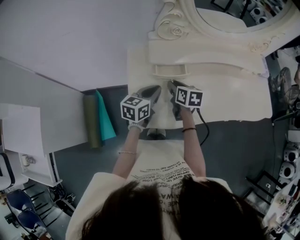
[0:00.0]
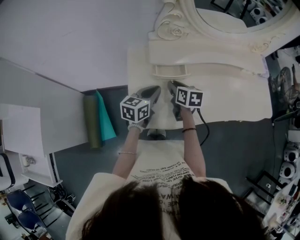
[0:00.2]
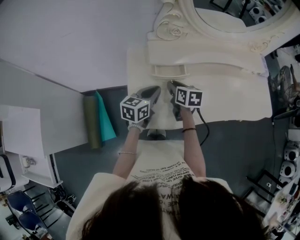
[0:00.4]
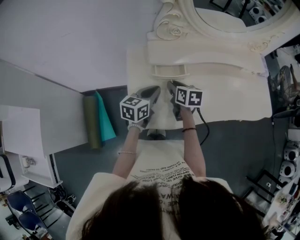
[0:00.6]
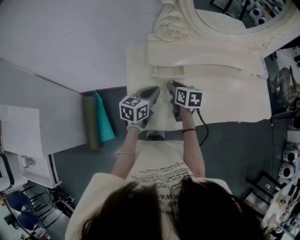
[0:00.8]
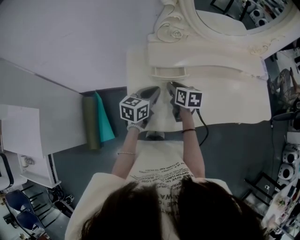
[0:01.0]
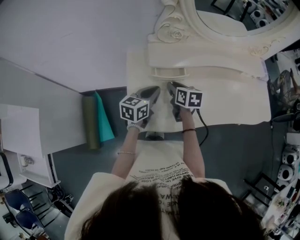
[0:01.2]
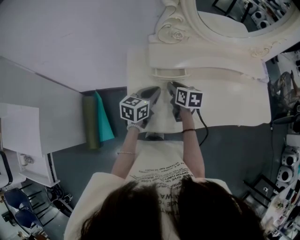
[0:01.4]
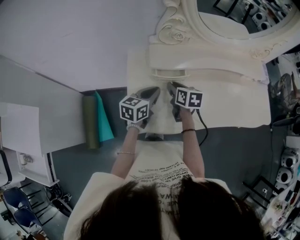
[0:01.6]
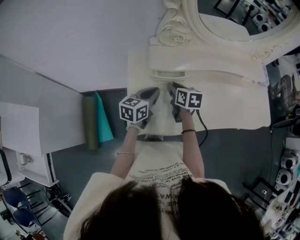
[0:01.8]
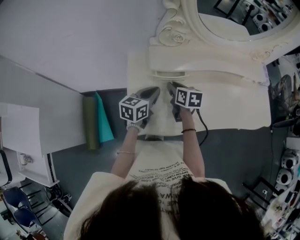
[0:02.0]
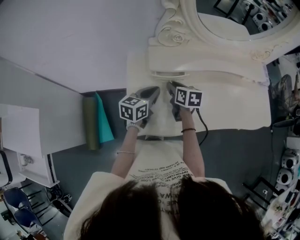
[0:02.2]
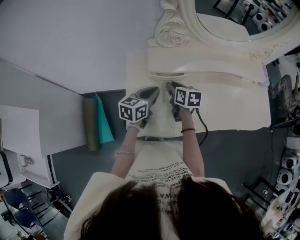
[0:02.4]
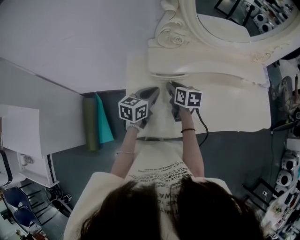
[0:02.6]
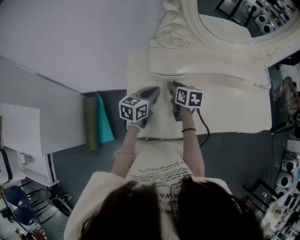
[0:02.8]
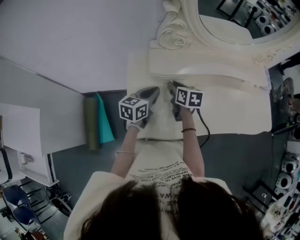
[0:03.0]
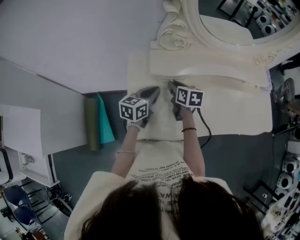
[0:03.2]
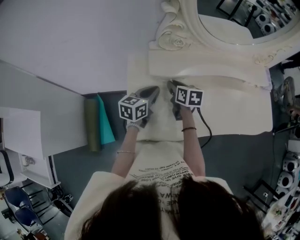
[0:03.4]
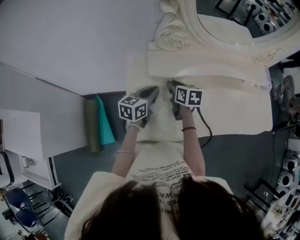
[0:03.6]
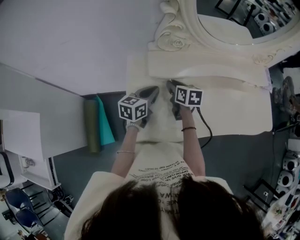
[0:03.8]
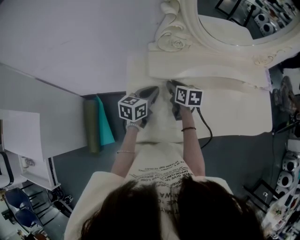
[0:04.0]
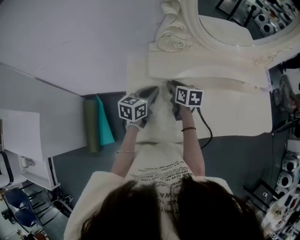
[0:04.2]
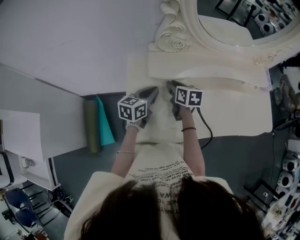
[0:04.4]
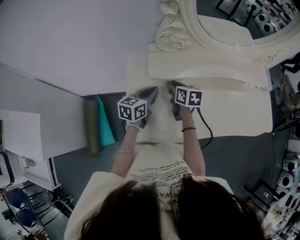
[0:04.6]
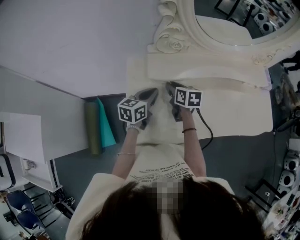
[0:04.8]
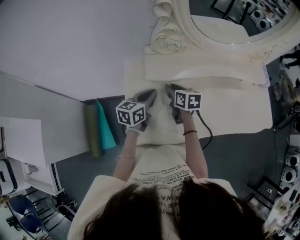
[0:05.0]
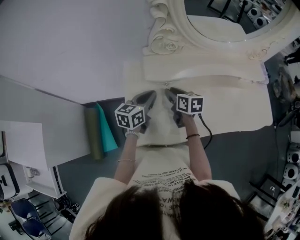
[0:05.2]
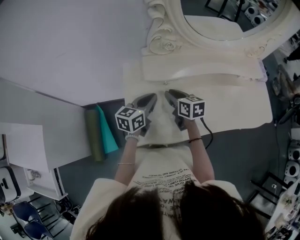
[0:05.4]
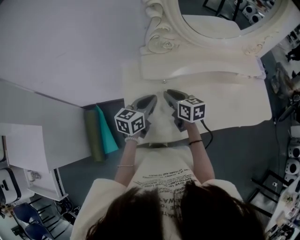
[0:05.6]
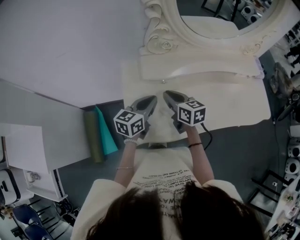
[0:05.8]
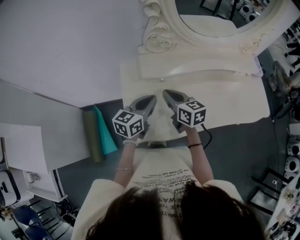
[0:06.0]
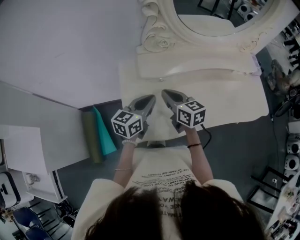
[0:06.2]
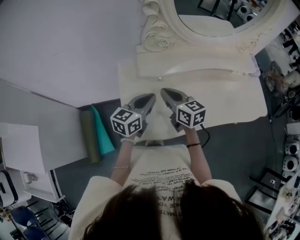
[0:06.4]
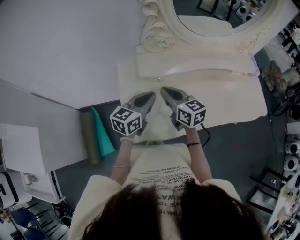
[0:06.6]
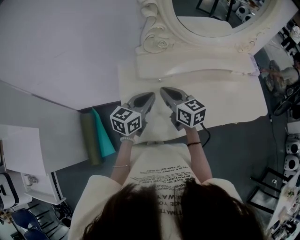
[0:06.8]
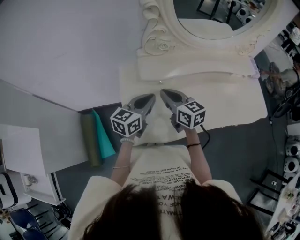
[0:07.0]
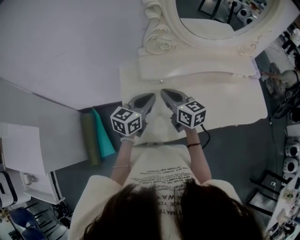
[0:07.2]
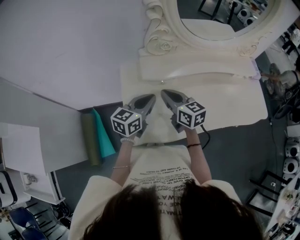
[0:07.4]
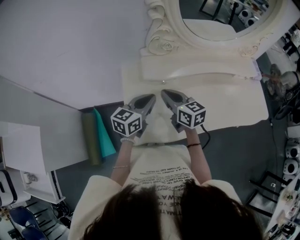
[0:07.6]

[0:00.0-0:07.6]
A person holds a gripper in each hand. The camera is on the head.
0:00.0 to 0:03.0: The grippers move only a little.
0:03.0 to 0:04.6: The grippers make only small movements.
0:04.6 to 0:06.0: Both grippers travel together backward and upward, about 10 cm. The right gripper closes.
0:06.0 to 0:07.6: The grippers move only a little.

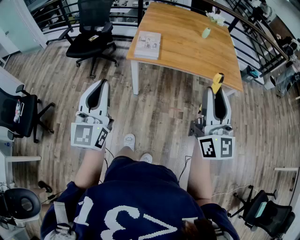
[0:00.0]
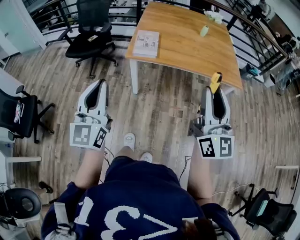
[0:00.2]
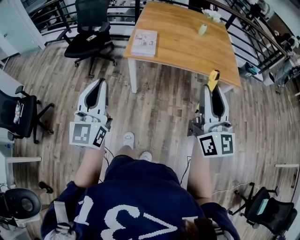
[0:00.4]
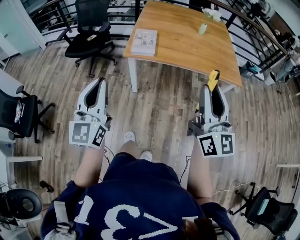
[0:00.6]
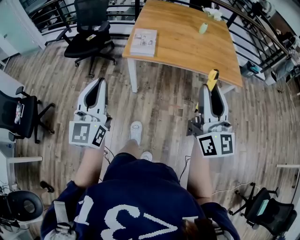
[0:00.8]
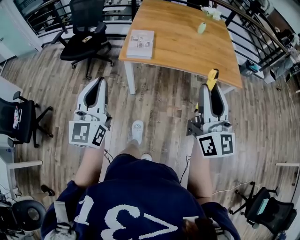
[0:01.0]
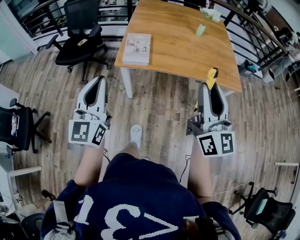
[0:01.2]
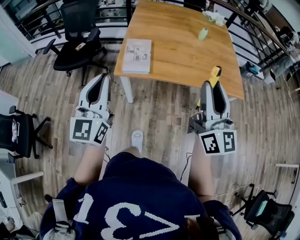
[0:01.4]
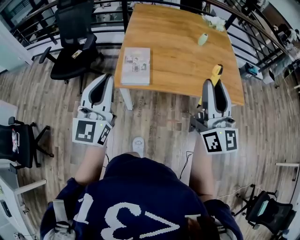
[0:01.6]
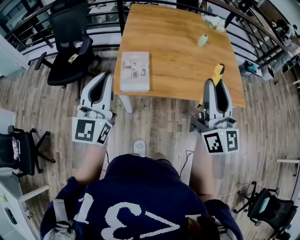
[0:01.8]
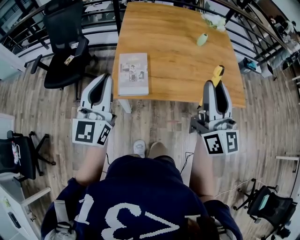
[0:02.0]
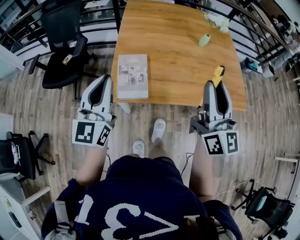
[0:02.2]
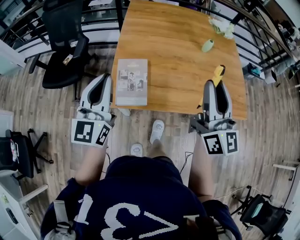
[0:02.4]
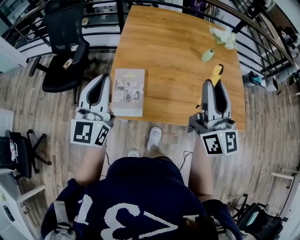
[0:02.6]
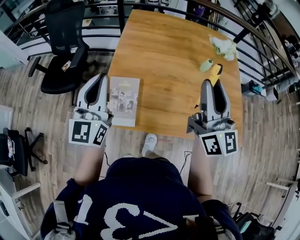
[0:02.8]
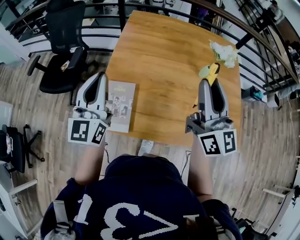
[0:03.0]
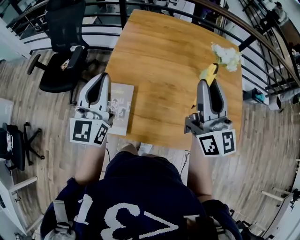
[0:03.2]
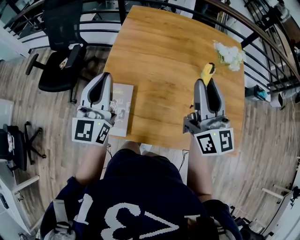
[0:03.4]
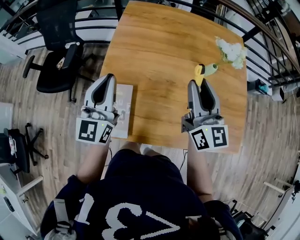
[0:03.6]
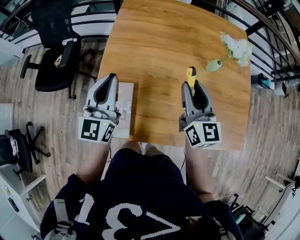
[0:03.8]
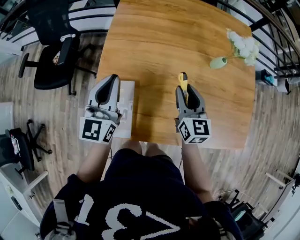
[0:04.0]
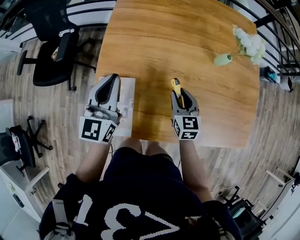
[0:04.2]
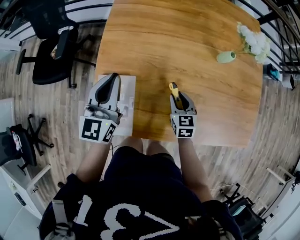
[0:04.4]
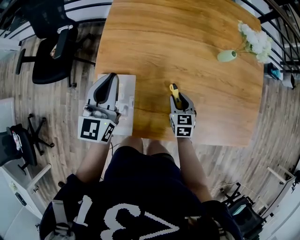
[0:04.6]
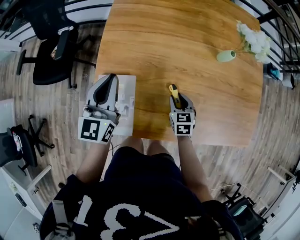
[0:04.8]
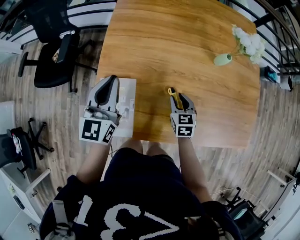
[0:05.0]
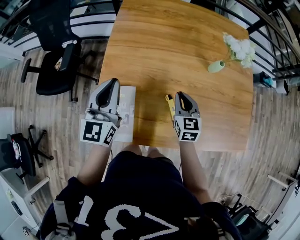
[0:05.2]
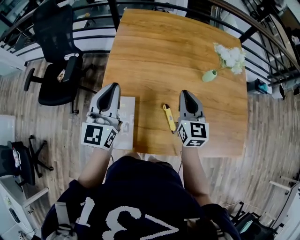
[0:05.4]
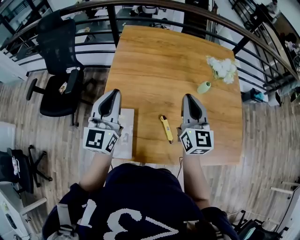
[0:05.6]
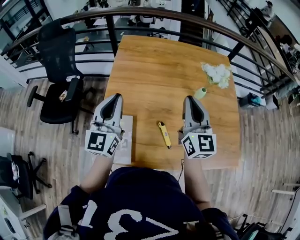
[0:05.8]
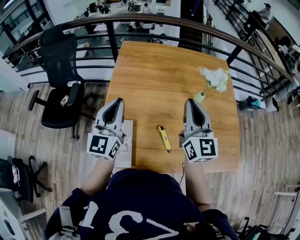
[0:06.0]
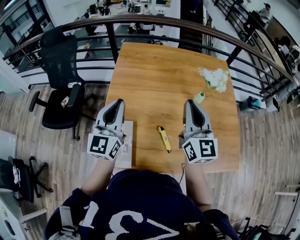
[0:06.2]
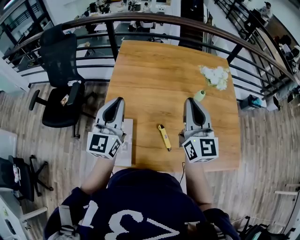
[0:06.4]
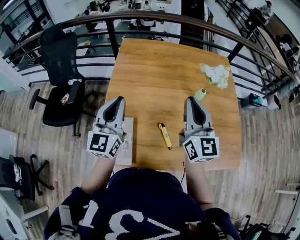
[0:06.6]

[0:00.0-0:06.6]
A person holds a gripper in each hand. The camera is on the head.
0:00.0 to 0:01.6: The grippers both shift forward by roughly 25 cm.
0:01.6 to 0:03.2: The grippers both shift forward by some 30 cm.
0:03.2 to 0:05.0: The left gripper heads downward and forward, covering some 15 cm. Meanwhile the right gripper shifts some 40 cm downward, and tips its fingers downward by approximately 60 degrees.
0:05.0 to 0:06.6: The right gripper goes roughly 35 cm upward, points its fingers approximately 50 degrees further upward, and closes its fingers; the left gripper heads upward, covering some 10 cm.

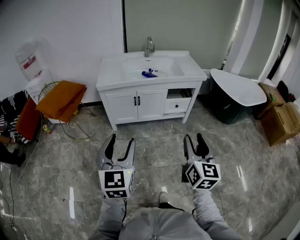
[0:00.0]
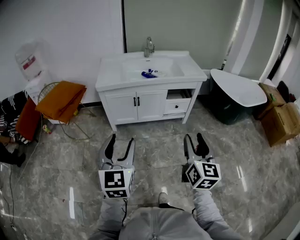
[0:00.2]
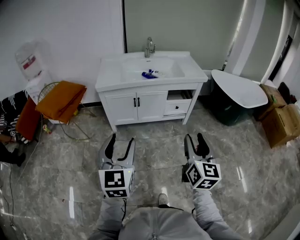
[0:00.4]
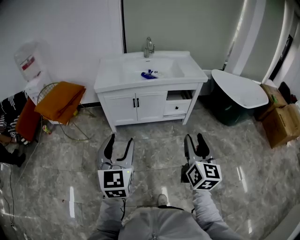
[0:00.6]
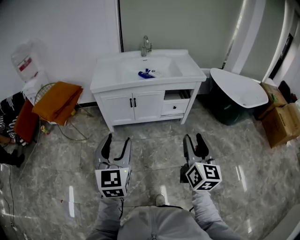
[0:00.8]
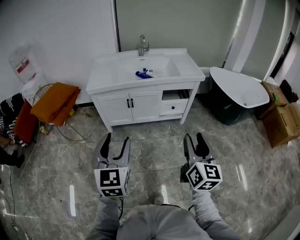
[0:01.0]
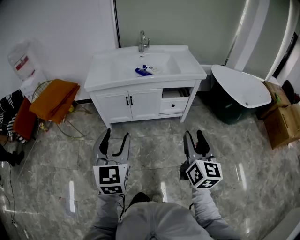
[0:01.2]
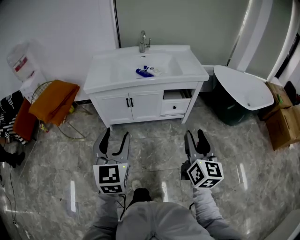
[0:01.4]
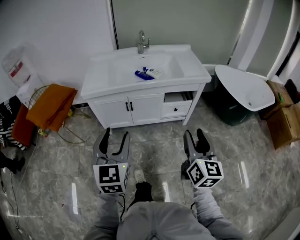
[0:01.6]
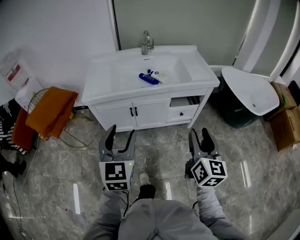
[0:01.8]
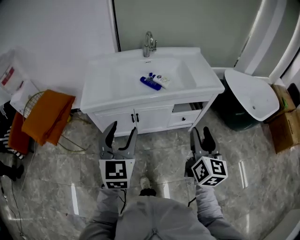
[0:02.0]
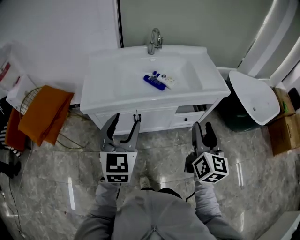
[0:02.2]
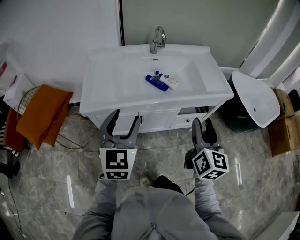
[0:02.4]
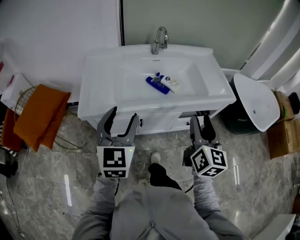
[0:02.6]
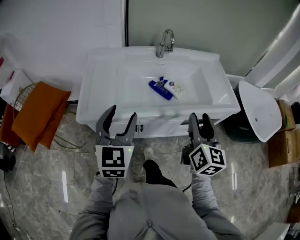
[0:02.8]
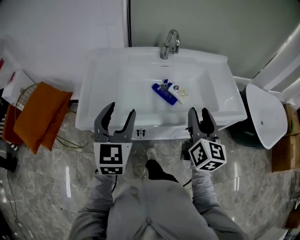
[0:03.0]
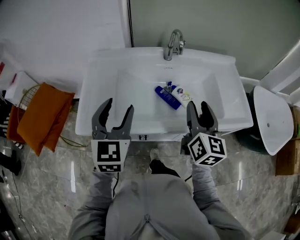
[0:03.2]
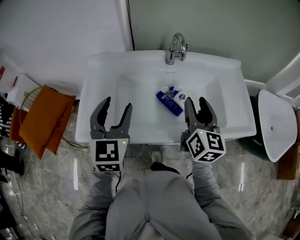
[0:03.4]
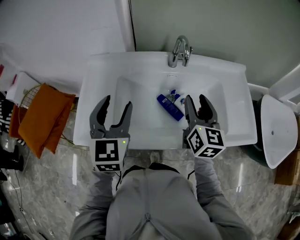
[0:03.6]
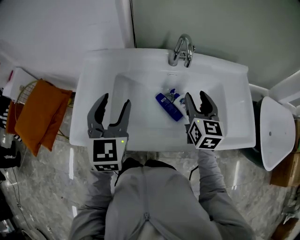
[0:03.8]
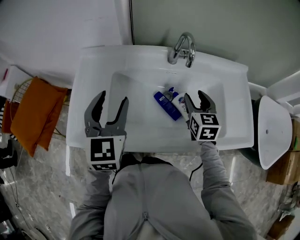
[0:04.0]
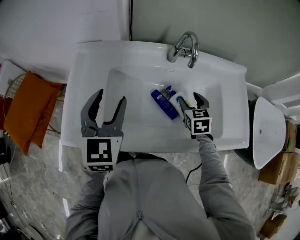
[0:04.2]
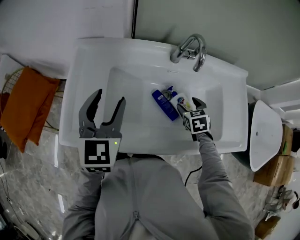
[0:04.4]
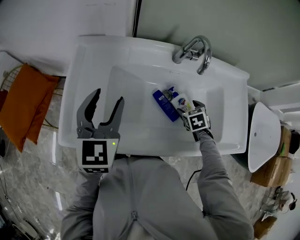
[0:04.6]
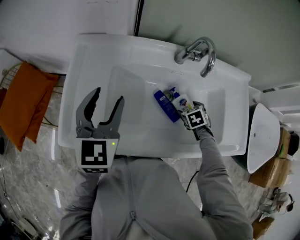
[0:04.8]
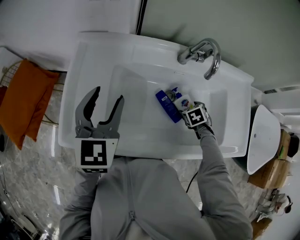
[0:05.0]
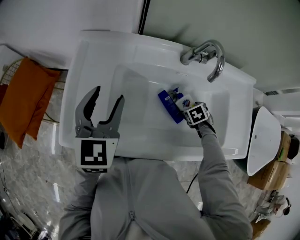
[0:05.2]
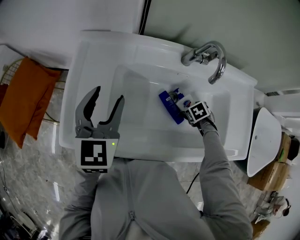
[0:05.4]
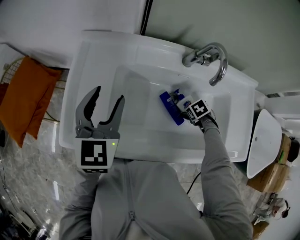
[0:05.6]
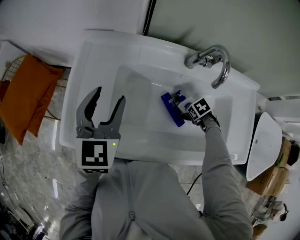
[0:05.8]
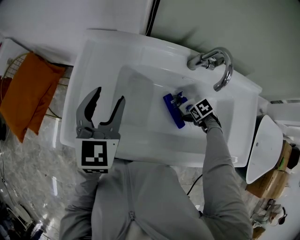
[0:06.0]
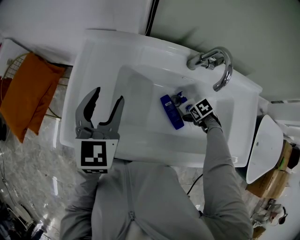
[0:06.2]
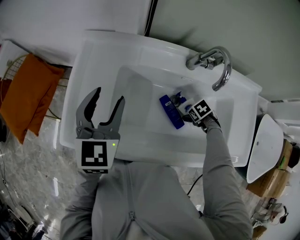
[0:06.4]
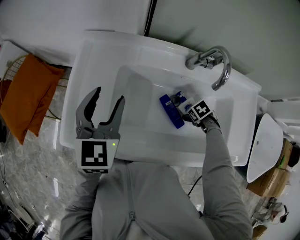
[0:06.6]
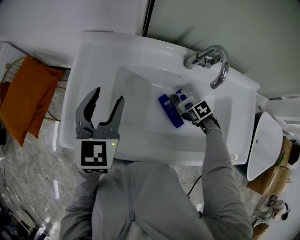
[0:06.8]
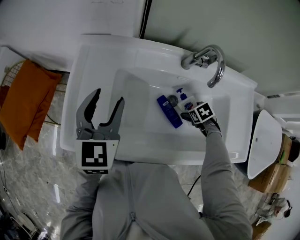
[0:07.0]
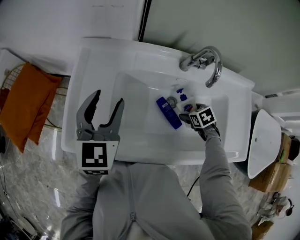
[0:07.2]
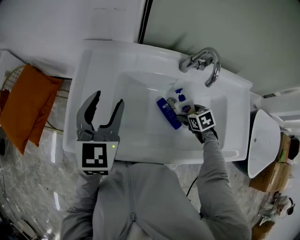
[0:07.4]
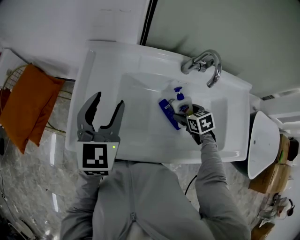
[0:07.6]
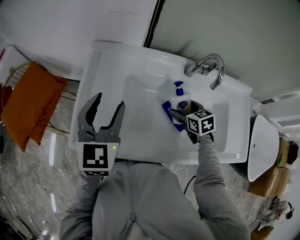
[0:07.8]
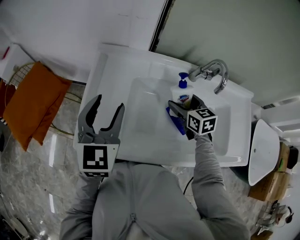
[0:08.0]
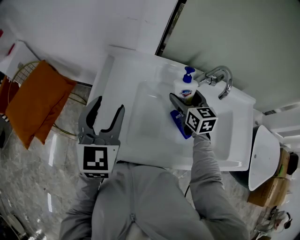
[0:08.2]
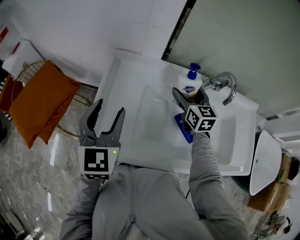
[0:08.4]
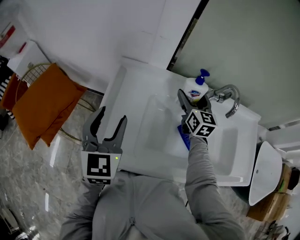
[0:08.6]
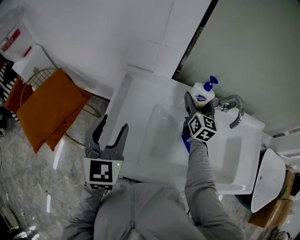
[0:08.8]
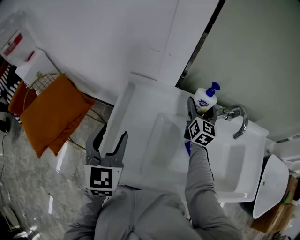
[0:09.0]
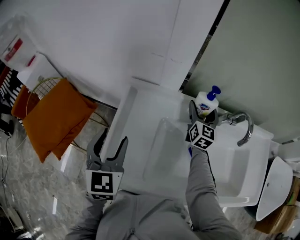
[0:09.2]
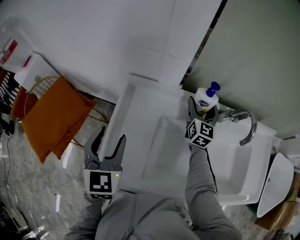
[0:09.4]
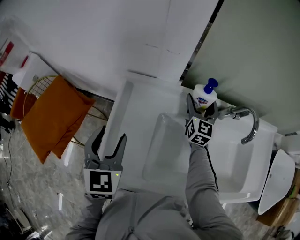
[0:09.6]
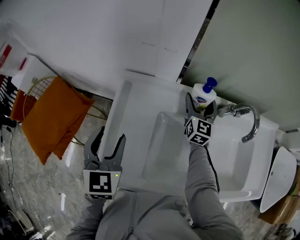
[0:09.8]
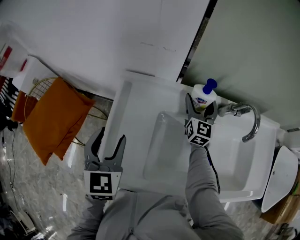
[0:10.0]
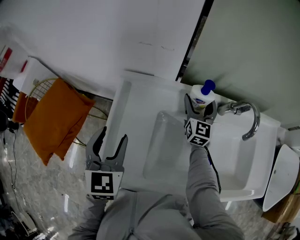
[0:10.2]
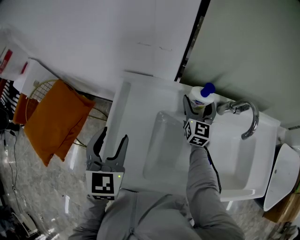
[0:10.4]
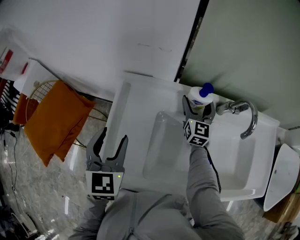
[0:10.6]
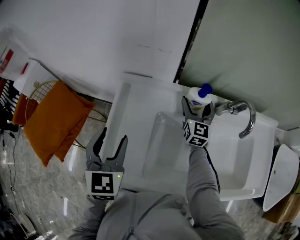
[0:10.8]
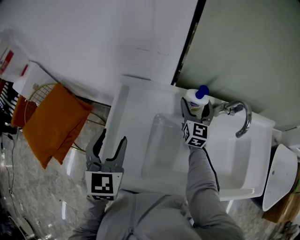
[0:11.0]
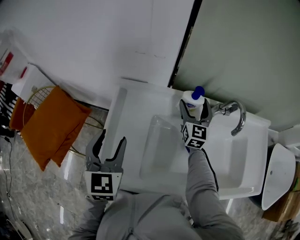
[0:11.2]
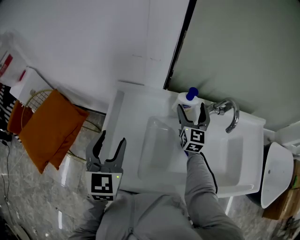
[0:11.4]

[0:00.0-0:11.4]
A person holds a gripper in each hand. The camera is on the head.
0:00.0 to 0:01.4: The grippers both shift forward and to the right by roughly 15 cm.
0:01.4 to 0:02.8: The two grippers travel together, forward, roughly 40 cm.
0:02.8 to 0:04.2: The left gripper travels forward by about 25 cm; the right gripper shifts roughly 40 cm forward and downward, and tips its fingers downward by about 40 degrees.
0:04.2 to 0:05.6: The right gripper is displaced downward by some 15 cm, angles its fingers downward, by about 50 degrees, and opens up; the left gripper changes place by roughly 5 cm.
0:05.6 to 0:07.2: The right gripper moves approximately 5 cm.
0:07.2 to 0:08.6: The right gripper travels upward, forward and to the left by some 35 cm, and tilts its fingers some 60 degrees upward. Meanwhile the left gripper moves to the left, approximately 10 cm.
0:08.6 to 0:10.0: The right gripper shifts about 5 cm forward, while the left gripper changes place by approximately 5 cm.
0:10.0 to 0:11.4: The right gripper ends up roughly 5 cm from where it was.
